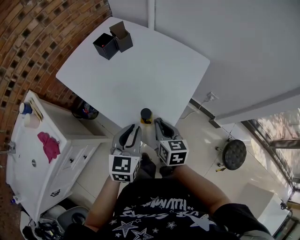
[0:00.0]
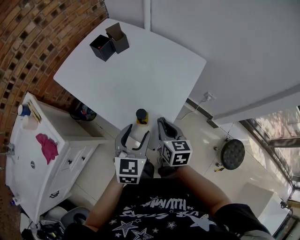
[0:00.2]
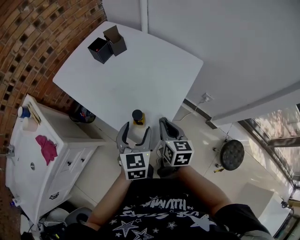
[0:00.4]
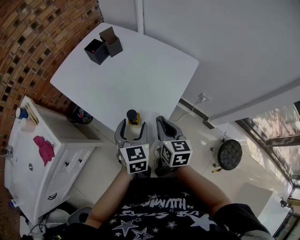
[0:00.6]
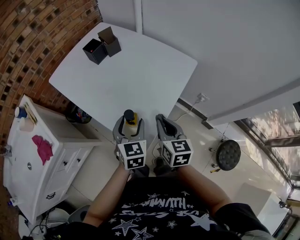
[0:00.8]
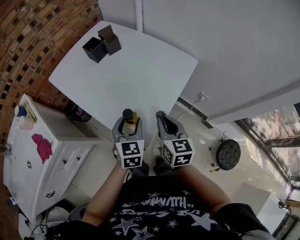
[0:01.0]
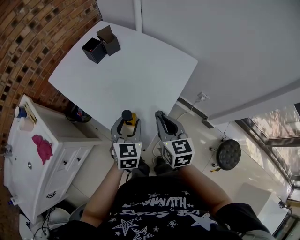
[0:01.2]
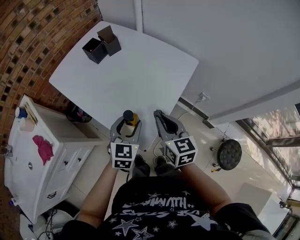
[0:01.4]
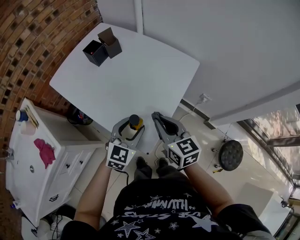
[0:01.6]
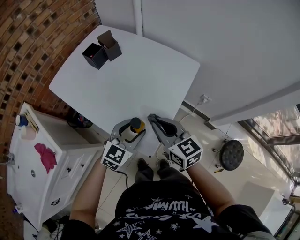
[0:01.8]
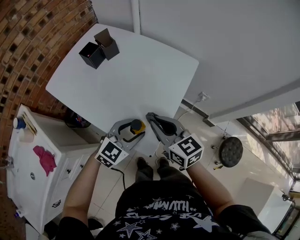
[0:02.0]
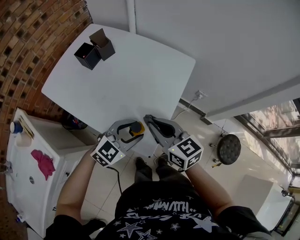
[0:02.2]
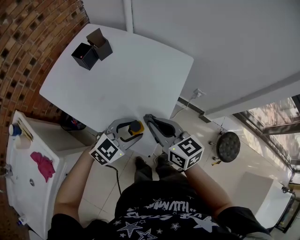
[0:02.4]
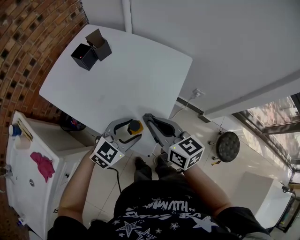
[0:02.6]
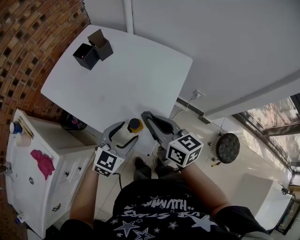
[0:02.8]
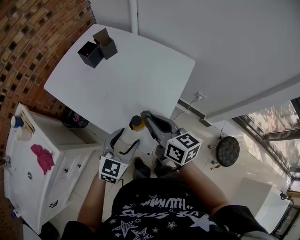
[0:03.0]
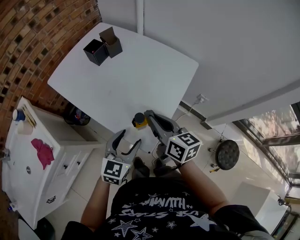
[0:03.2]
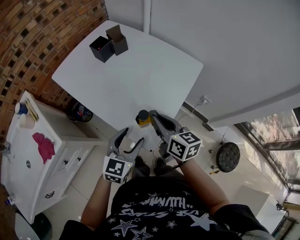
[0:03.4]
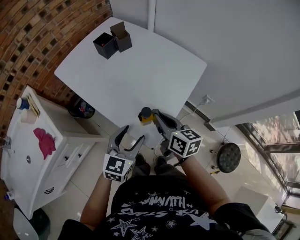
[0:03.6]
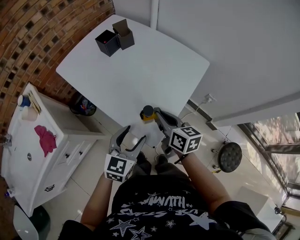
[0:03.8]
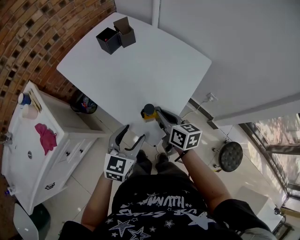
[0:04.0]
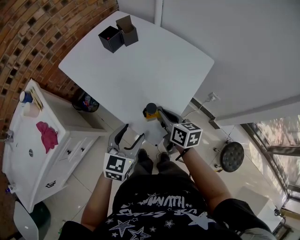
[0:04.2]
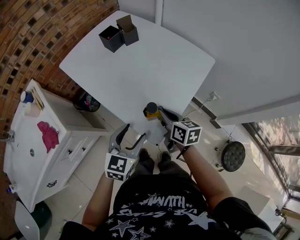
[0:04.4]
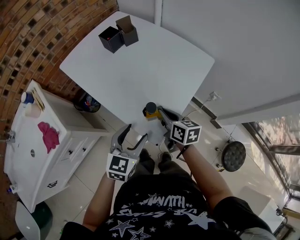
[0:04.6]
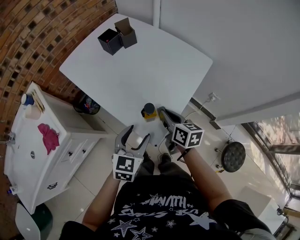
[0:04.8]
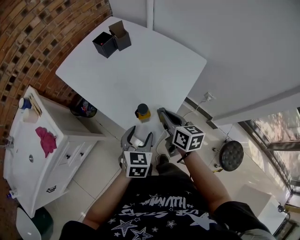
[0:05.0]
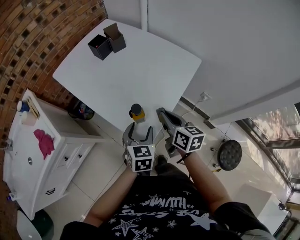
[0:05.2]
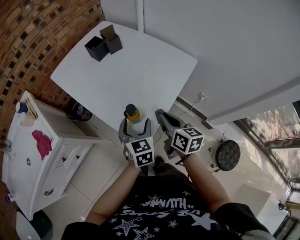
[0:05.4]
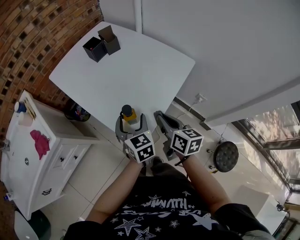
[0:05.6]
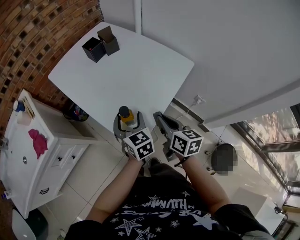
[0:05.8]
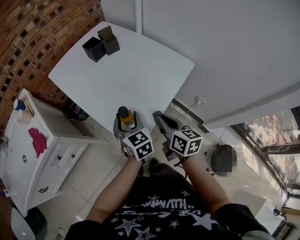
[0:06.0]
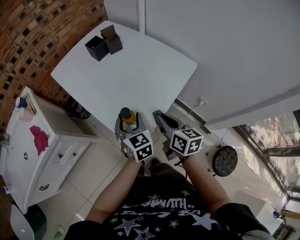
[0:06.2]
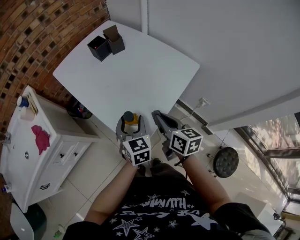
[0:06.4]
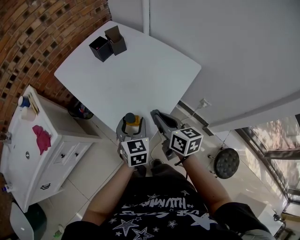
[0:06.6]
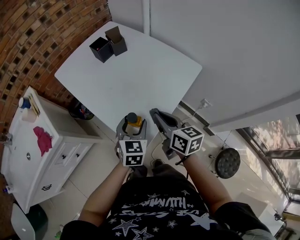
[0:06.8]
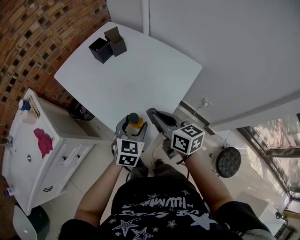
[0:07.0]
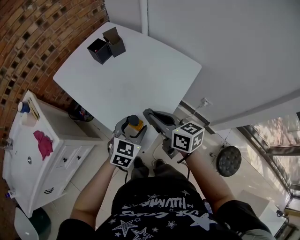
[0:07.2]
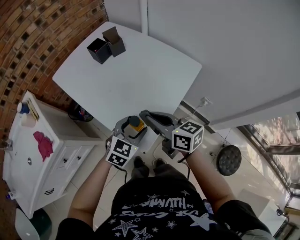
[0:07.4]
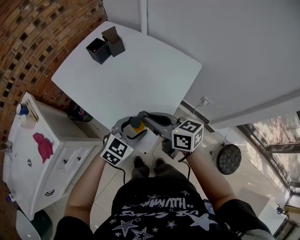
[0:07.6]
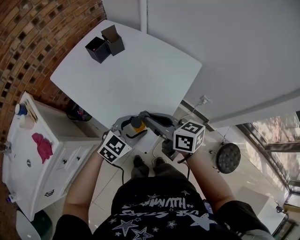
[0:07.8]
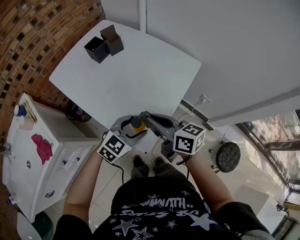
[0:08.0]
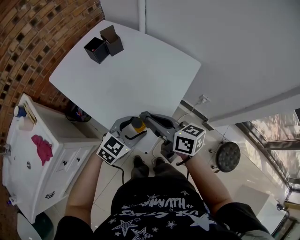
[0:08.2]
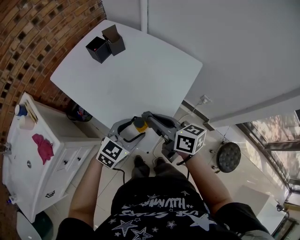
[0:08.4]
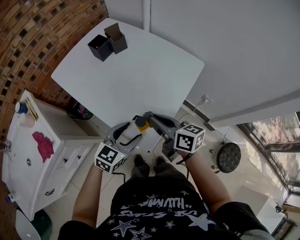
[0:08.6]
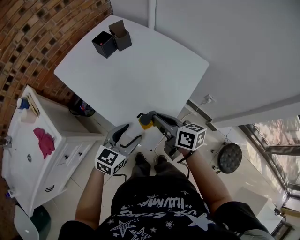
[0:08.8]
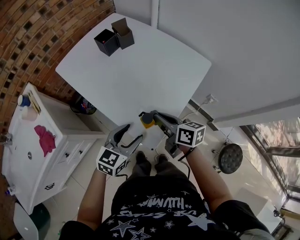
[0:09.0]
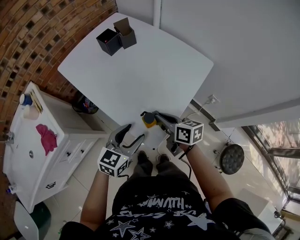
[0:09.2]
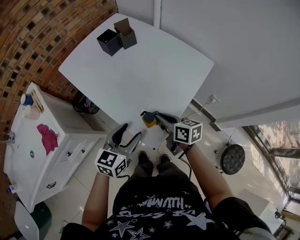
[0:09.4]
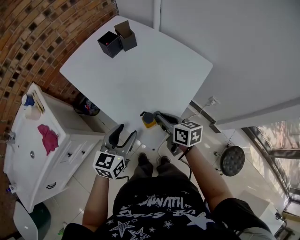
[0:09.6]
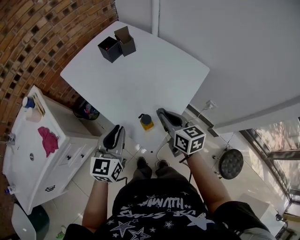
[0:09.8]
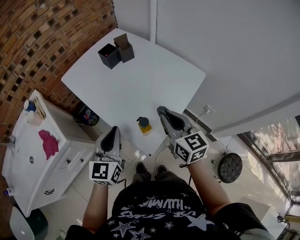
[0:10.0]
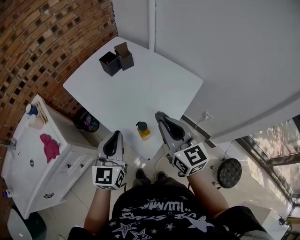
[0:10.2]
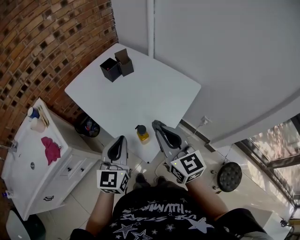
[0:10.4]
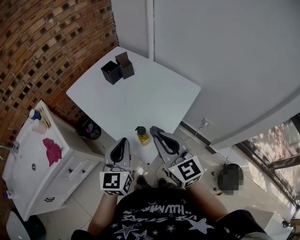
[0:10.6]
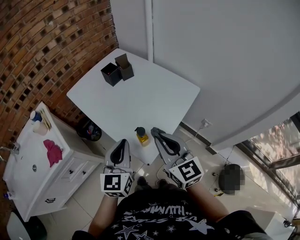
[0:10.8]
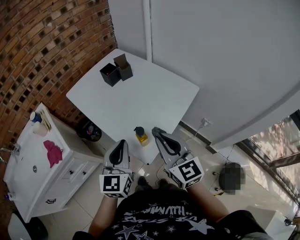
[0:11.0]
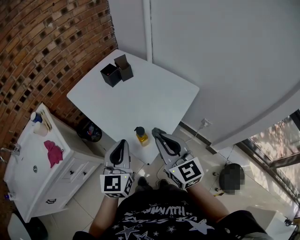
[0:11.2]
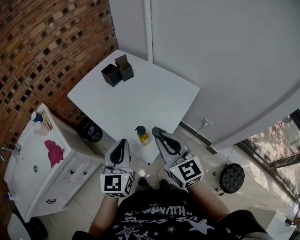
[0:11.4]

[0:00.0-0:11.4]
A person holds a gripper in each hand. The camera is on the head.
0:00.0 to 0:01.4: The left gripper moves approximately 5 cm, and opens. Meanwhile the right gripper travels upward and to the right by roughly 10 cm.
0:01.4 to 0:02.8: The left gripper rotates some 30 degrees; the right gripper moves about 5 cm.
0:02.8 to 0:04.2: The left gripper ends up about 5 cm from where it was, and turns by roughly 30 degrees; the right gripper heads downward, covering approximately 10 cm.
0:04.2 to 0:05.6: The right gripper is displaced to the right by some 5 cm, while the left gripper goes approximately 10 cm forward and to the right, and turns by roughly 40 degrees.
0:05.6 to 0:07.2: The left gripper turns by roughly 40 degrees. The right gripper moves approximately 10 cm.
0:07.2 to 0:08.6: The left gripper ends up about 5 cm from where it was.
0:08.6 to 0:10.0: The right gripper goes some 5 cm upward, and rotates approximately 30 degrees, while the left gripper is displaced upward and to the left by some 15 cm, changes its angle by about 40 degrees, and closes.
0:10.0 to 0:11.4: The right gripper is displaced backward and upward by about 10 cm. The left gripper changes place by approximately 5 cm.

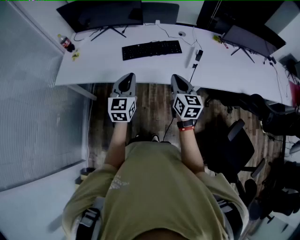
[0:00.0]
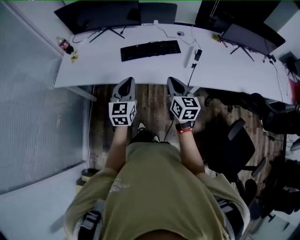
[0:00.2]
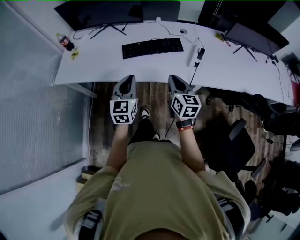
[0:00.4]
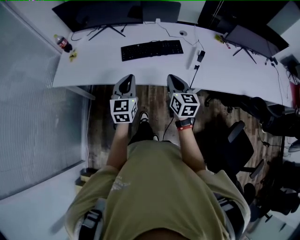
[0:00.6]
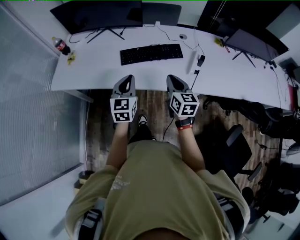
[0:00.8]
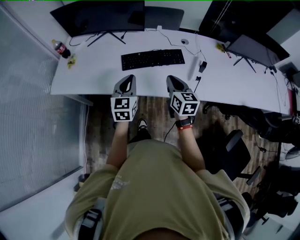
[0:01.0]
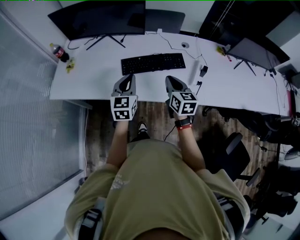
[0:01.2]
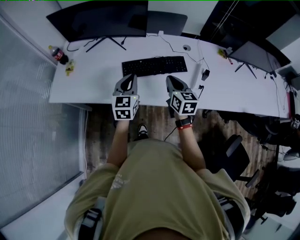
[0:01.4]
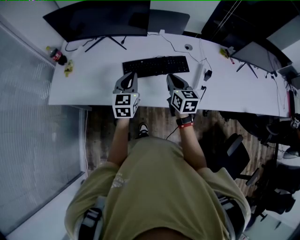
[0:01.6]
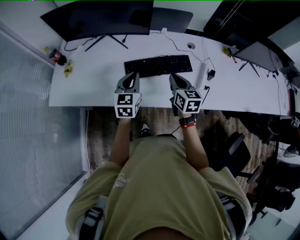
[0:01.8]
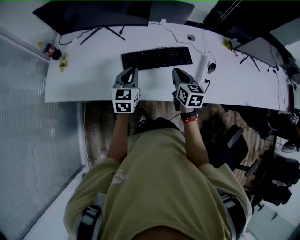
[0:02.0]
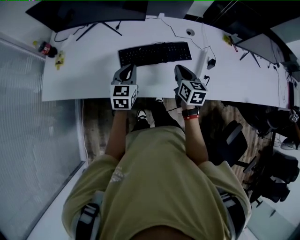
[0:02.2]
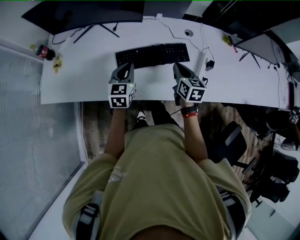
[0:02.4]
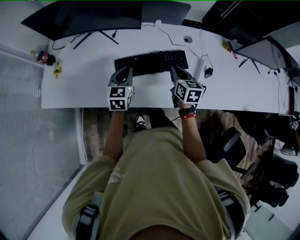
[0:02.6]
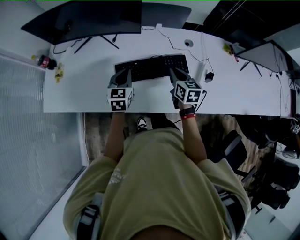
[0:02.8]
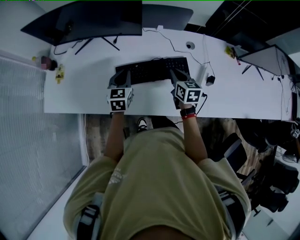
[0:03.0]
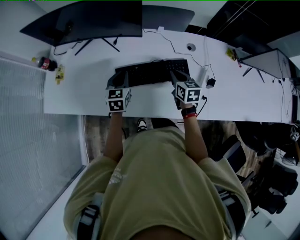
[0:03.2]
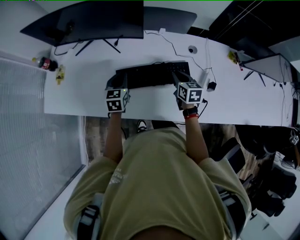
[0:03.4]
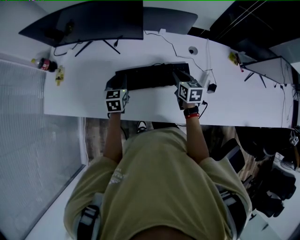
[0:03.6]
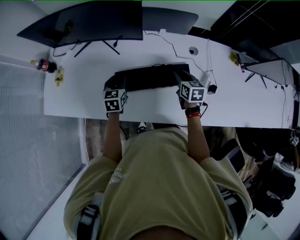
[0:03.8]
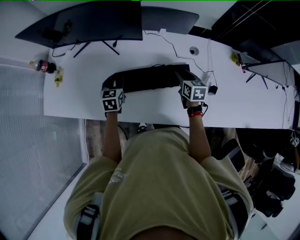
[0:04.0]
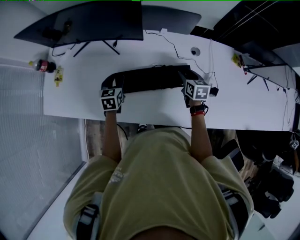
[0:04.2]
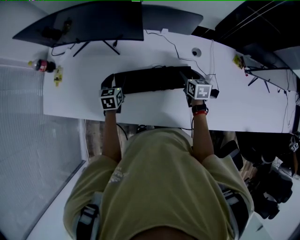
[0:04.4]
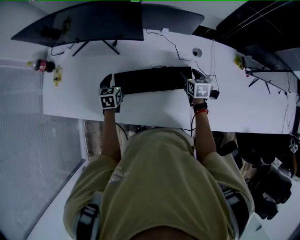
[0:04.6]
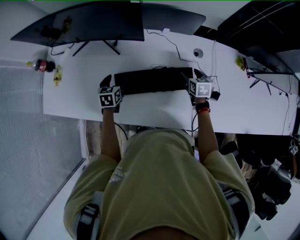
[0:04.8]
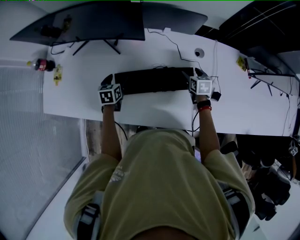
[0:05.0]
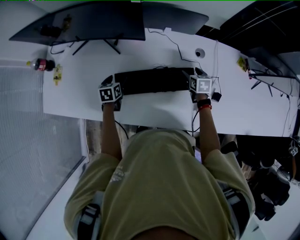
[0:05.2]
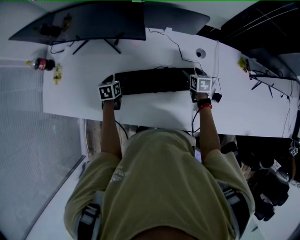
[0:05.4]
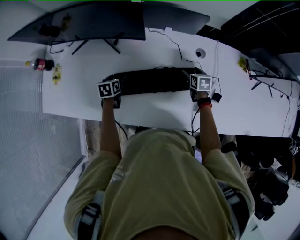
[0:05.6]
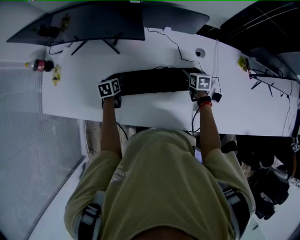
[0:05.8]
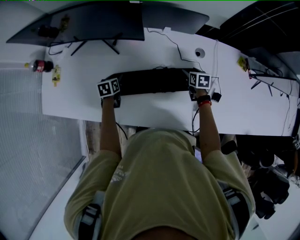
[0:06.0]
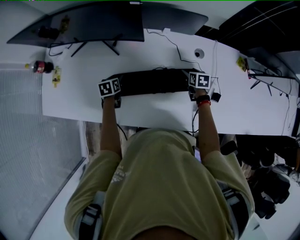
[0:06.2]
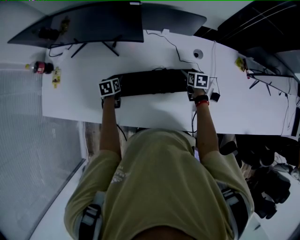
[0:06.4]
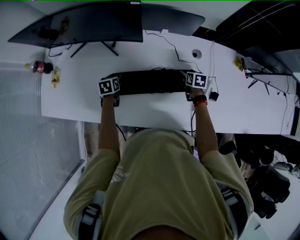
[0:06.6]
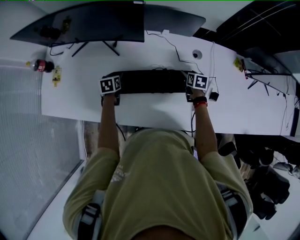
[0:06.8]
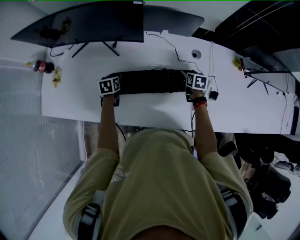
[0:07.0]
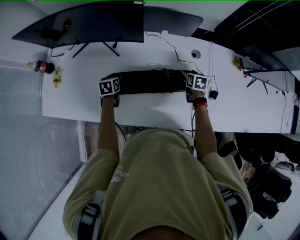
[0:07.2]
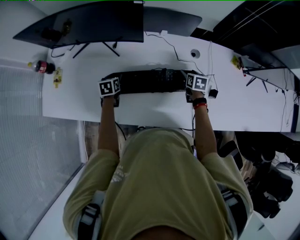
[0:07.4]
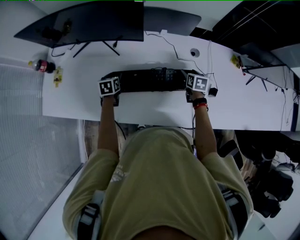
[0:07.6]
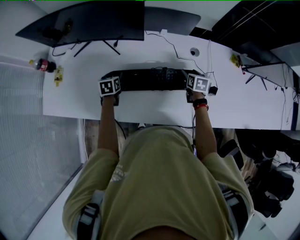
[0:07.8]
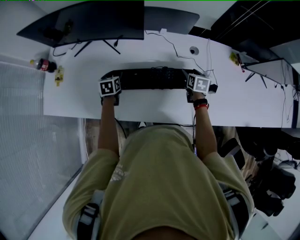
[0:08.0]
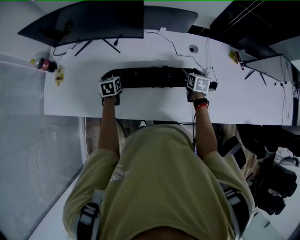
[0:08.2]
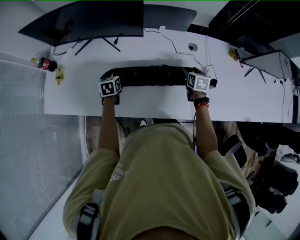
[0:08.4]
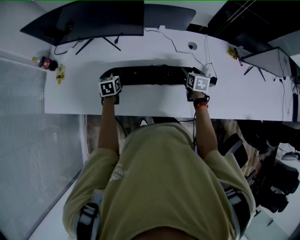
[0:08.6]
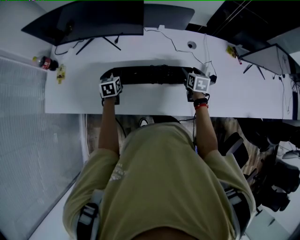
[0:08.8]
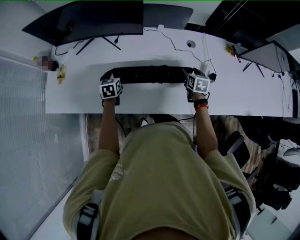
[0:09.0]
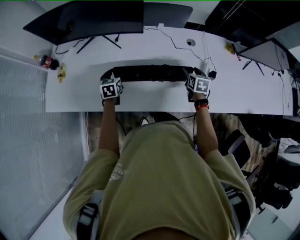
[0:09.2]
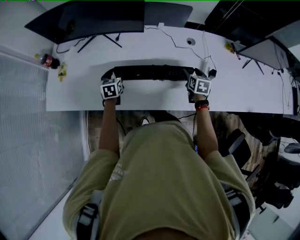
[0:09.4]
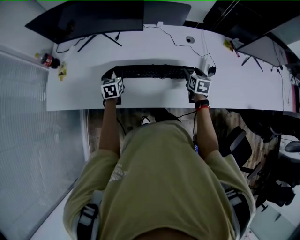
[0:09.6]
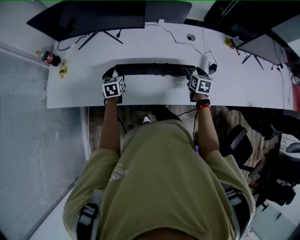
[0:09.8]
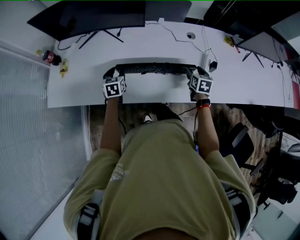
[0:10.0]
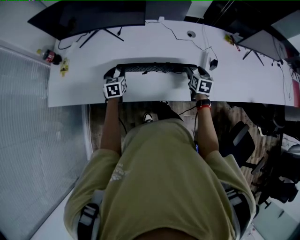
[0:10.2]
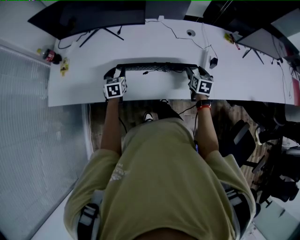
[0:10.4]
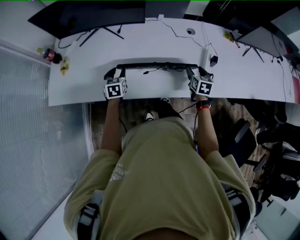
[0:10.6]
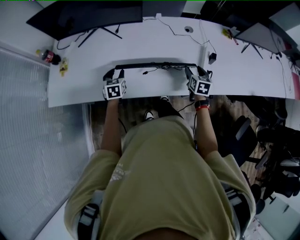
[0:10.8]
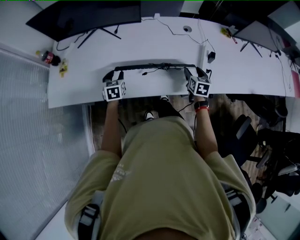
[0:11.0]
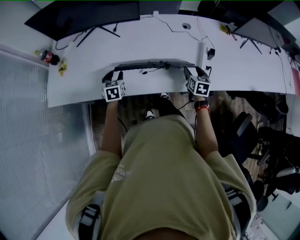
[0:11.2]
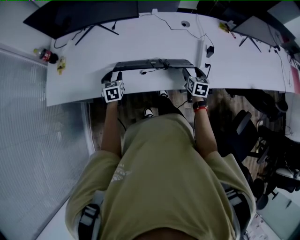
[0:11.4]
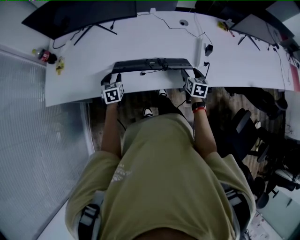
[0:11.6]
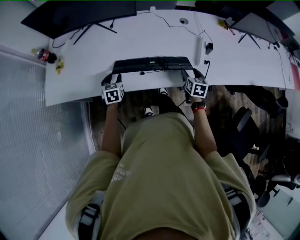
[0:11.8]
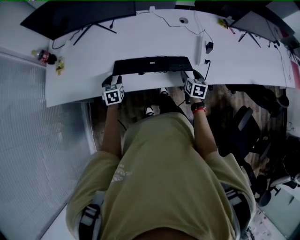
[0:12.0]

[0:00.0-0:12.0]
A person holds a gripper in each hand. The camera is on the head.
0:00.0 to 0:01.6: Both grippers move forward, approximately 25 cm.
0:01.6 to 0:03.0: Both grippers travel together forward and downward, approximately 15 cm.
0:03.0 to 0:04.4: The right gripper goes about 15 cm forward, to the right and downward, and opens up; the left gripper moves downward and forward, about 10 cm, and opens up.
0:04.4 to 0:06.0: The grippers both shift downward by about 10 cm. The left gripper changes its angle by about 20 degrees.
0:06.0 to 0:07.6: The right gripper shifts approximately 5 cm upward.
0:07.6 to 0:09.0: The left gripper goes approximately 5 cm backward. The right gripper goes roughly 10 cm backward and upward.
0:09.0 to 0:10.4: The two grippers go roughly 10 cm backward.
0:10.4 to 0:12.0: Both grippers travel together backward and downward, some 10 cm.
